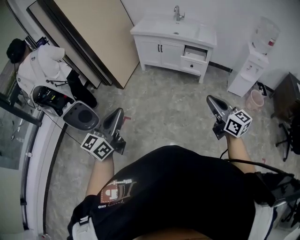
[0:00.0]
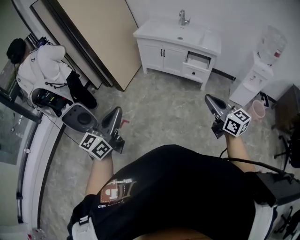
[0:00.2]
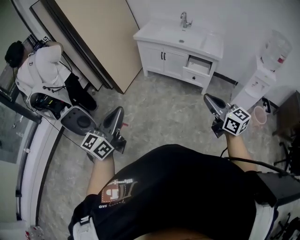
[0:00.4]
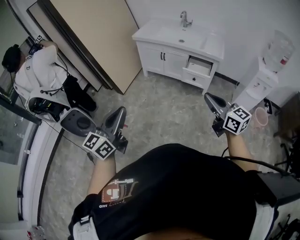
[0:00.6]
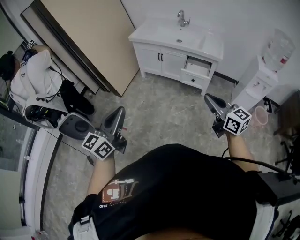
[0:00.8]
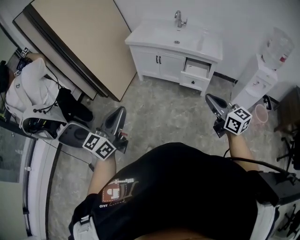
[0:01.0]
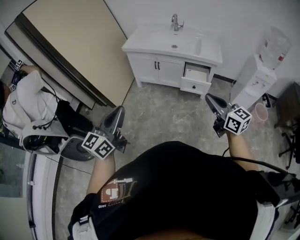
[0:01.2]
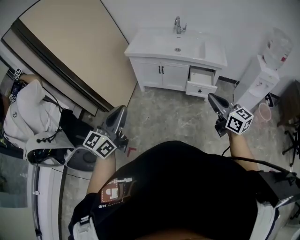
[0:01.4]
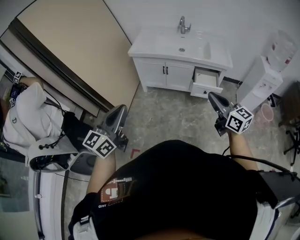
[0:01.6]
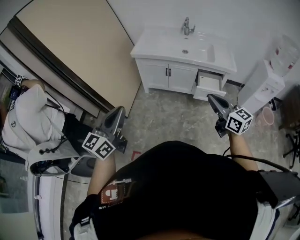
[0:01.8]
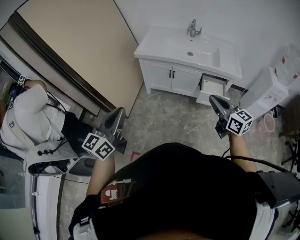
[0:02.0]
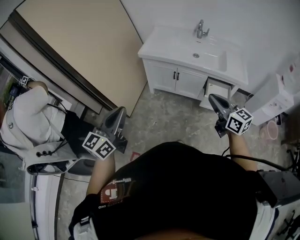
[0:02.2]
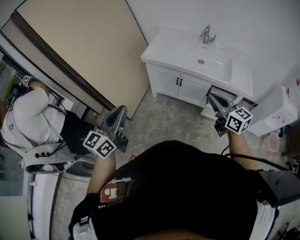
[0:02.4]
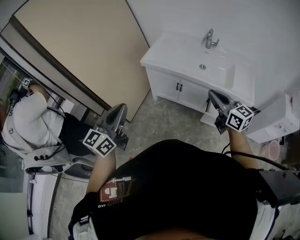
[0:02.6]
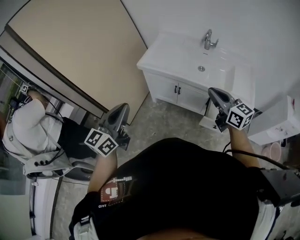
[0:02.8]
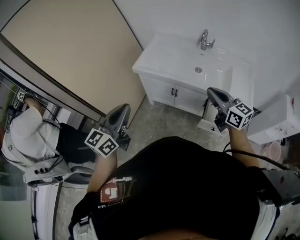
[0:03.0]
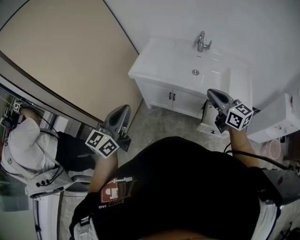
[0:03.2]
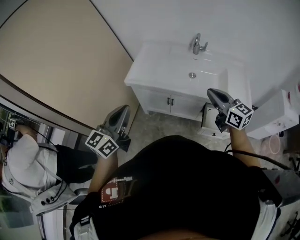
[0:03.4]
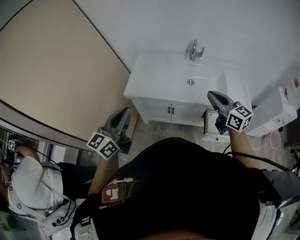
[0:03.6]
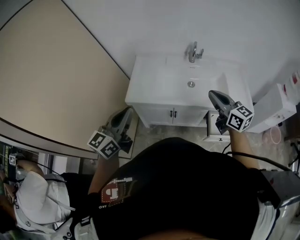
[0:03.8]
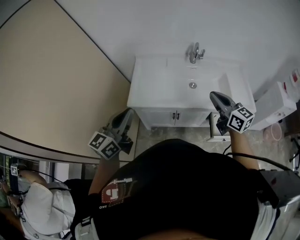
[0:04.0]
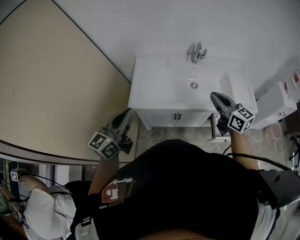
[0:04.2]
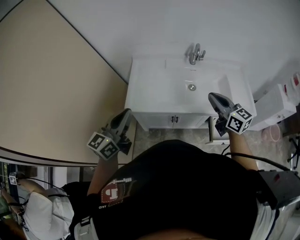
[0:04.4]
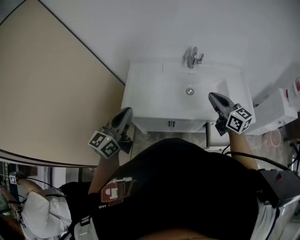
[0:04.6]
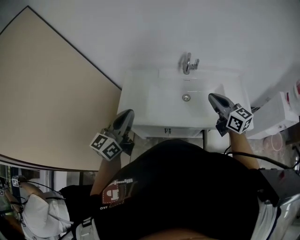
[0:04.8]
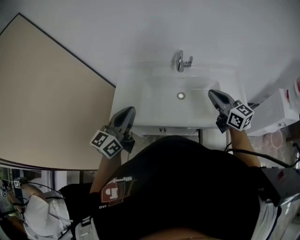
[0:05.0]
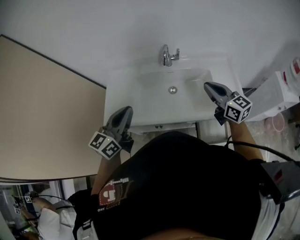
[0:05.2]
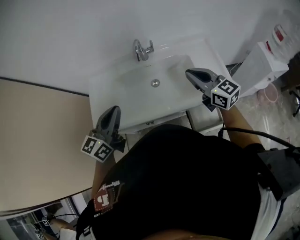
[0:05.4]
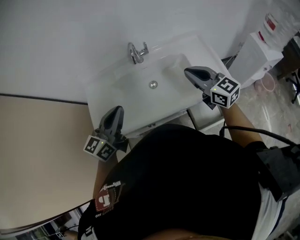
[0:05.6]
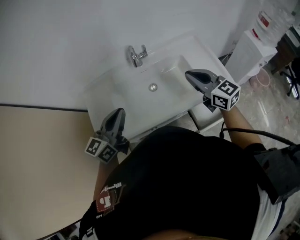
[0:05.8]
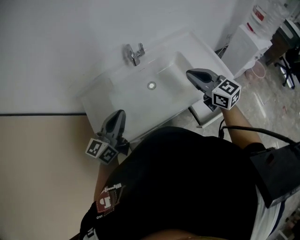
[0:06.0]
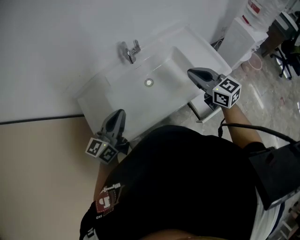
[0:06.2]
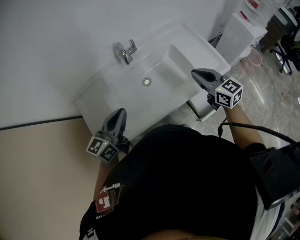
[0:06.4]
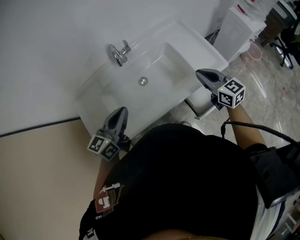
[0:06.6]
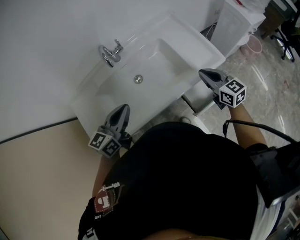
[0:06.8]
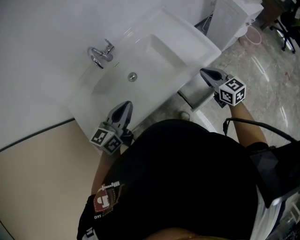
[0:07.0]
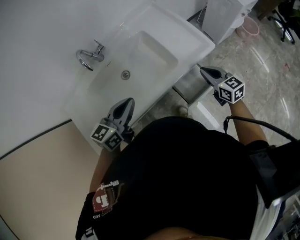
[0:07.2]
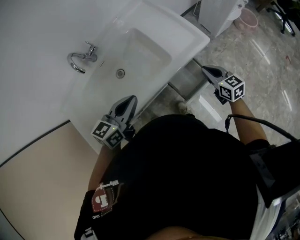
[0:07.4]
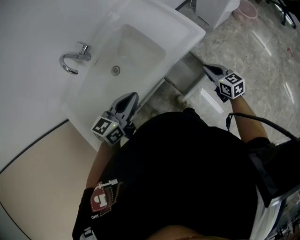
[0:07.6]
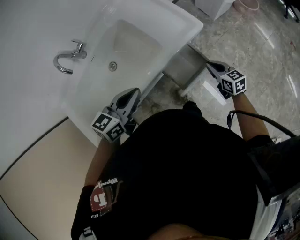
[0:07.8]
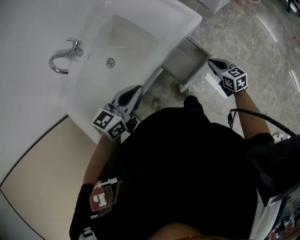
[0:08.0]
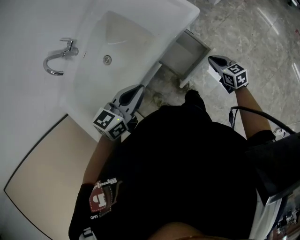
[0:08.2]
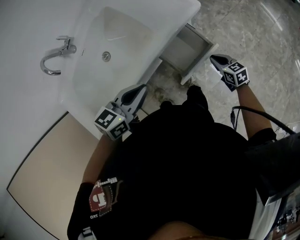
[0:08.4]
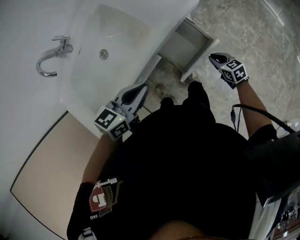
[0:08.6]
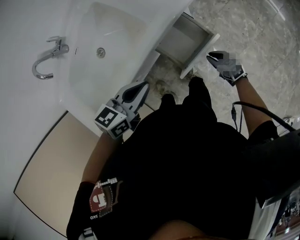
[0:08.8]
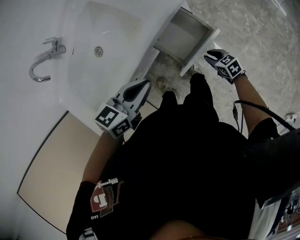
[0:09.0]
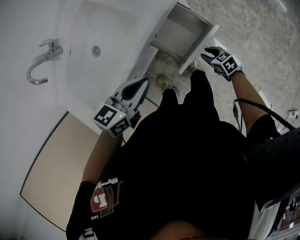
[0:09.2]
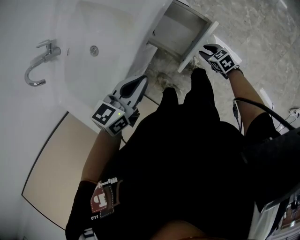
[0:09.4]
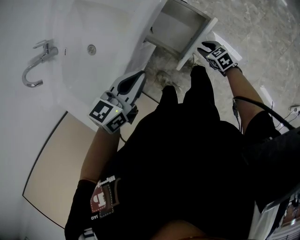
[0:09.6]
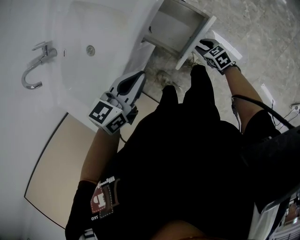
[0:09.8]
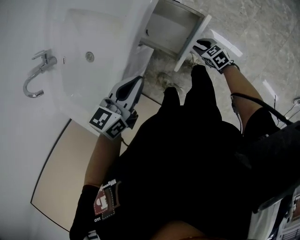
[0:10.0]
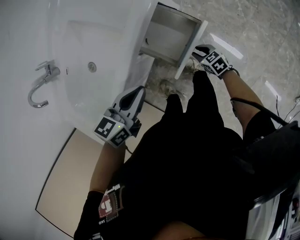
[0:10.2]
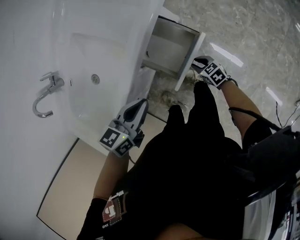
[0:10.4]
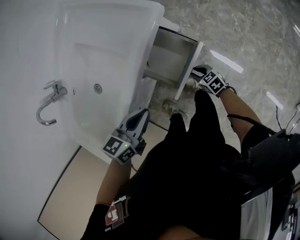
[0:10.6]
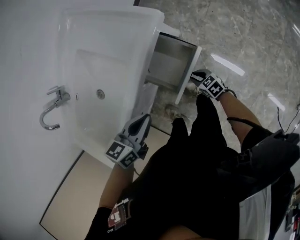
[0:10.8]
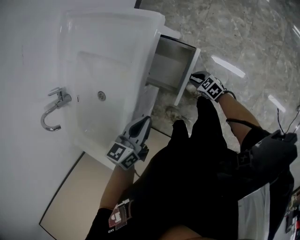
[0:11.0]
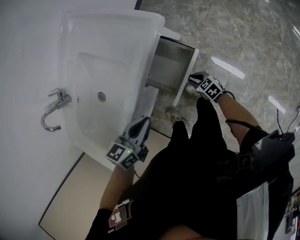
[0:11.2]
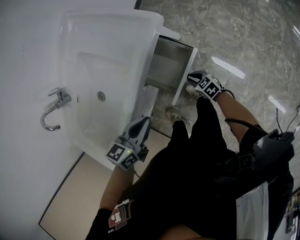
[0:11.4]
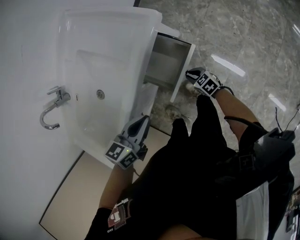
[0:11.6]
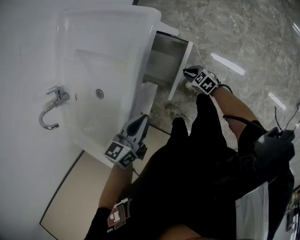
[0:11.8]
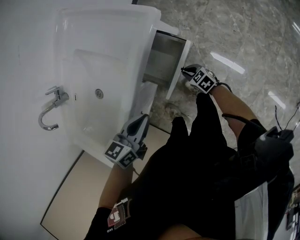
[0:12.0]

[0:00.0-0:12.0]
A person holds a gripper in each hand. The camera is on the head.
0.0 to 1.6 s: The two grippers travel together, forward, about 40 cm.
1.6 to 3.0 s: Both grippers travel together forward, about 35 cm.
3.0 to 4.4 s: The right gripper travels forward by approximately 20 cm, and rotates approximately 20 degrees, while the left gripper moves forward, some 30 cm, and turns by approximately 20 degrees.
4.4 to 6.0 s: Both grippers move to the right and forward, some 25 cm. The left gripper turns by some 30 degrees.
6.0 to 7.6 s: Both grippers travel together to the right and downward, approximately 35 cm. The left gripper turns by about 30 degrees, while the right gripper turns by roughly 30 degrees.
7.6 to 9.0 s: The left gripper shifts some 10 cm downward, and swivels some 20 degrees. The right gripper heads downward, covering some 25 cm, and changes its angle by approximately 20 degrees.
9.0 to 10.4 s: The right gripper ends up about 5 cm from where it was.
10.4 to 12.0 s: The right gripper changes place by about 5 cm.

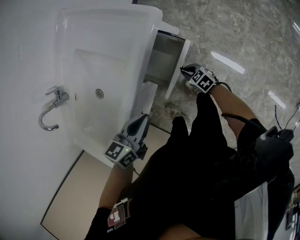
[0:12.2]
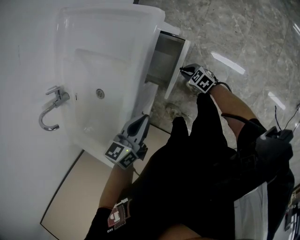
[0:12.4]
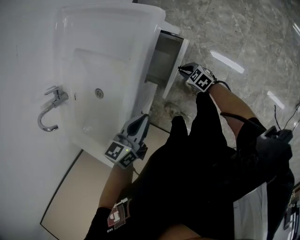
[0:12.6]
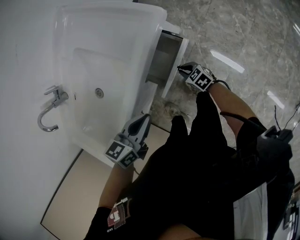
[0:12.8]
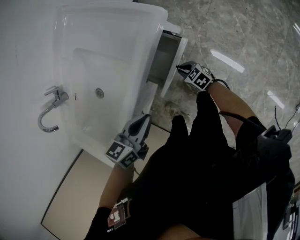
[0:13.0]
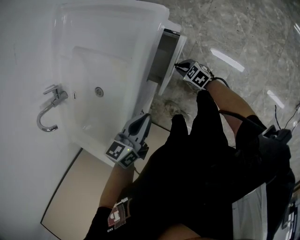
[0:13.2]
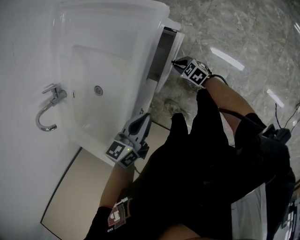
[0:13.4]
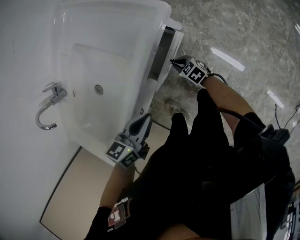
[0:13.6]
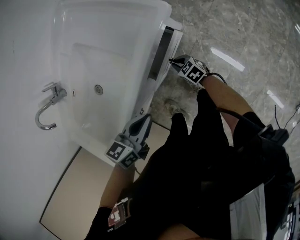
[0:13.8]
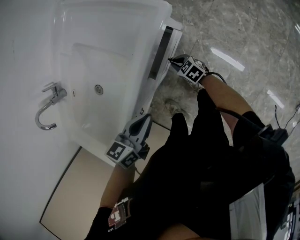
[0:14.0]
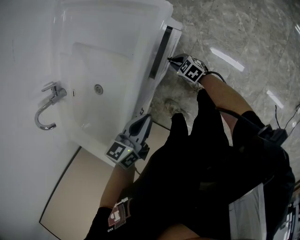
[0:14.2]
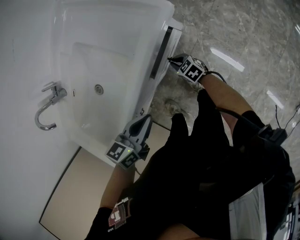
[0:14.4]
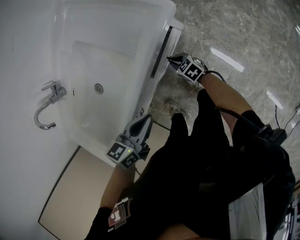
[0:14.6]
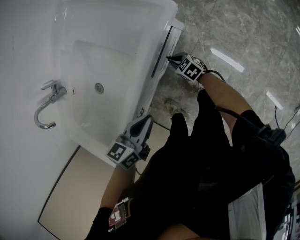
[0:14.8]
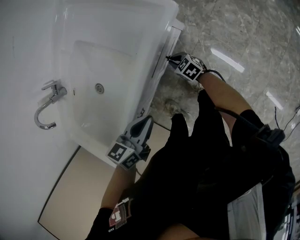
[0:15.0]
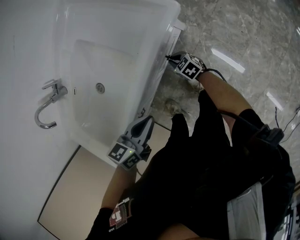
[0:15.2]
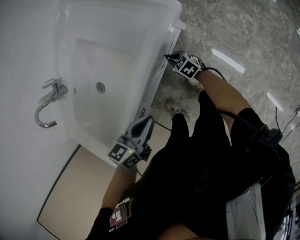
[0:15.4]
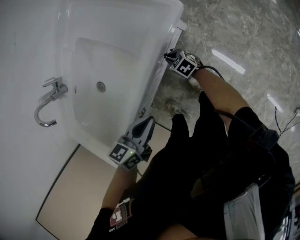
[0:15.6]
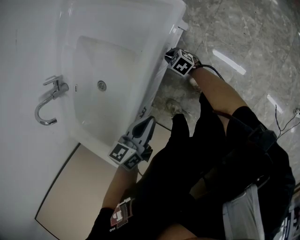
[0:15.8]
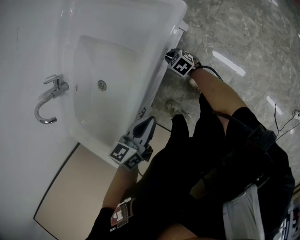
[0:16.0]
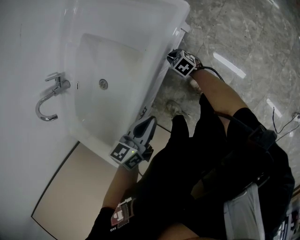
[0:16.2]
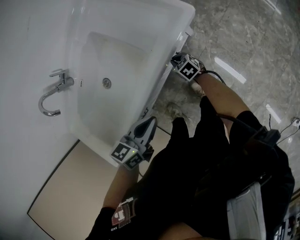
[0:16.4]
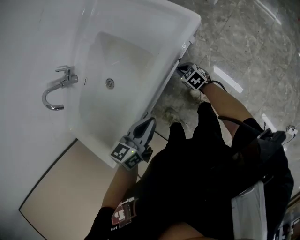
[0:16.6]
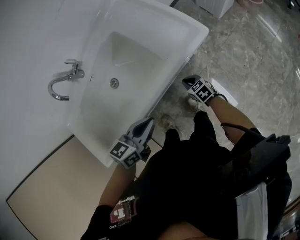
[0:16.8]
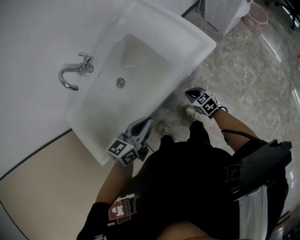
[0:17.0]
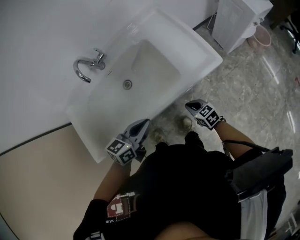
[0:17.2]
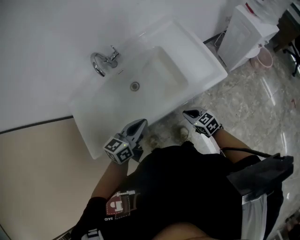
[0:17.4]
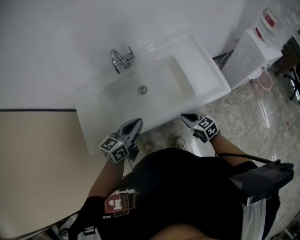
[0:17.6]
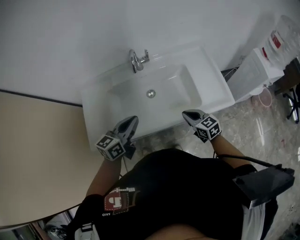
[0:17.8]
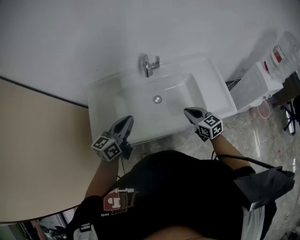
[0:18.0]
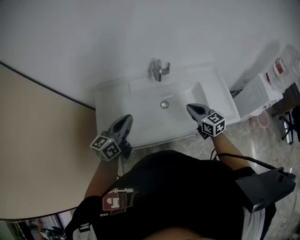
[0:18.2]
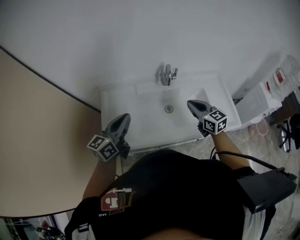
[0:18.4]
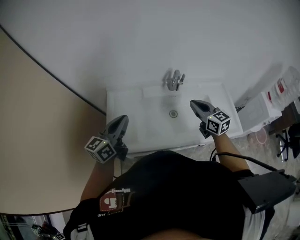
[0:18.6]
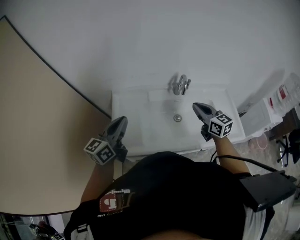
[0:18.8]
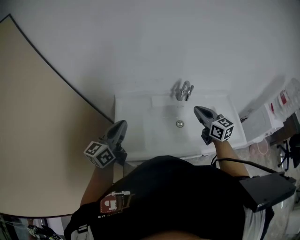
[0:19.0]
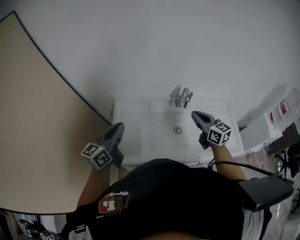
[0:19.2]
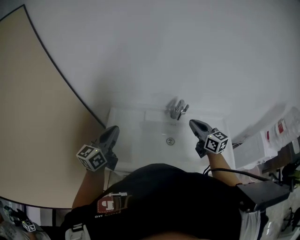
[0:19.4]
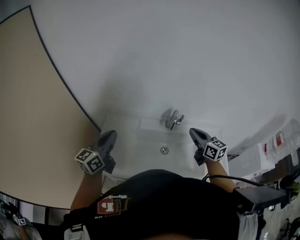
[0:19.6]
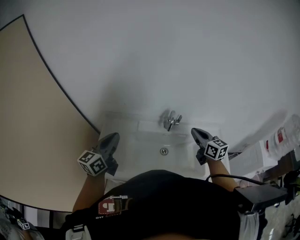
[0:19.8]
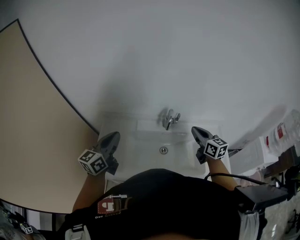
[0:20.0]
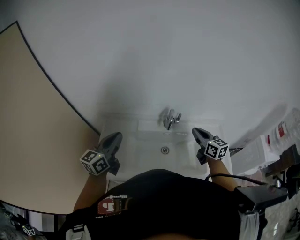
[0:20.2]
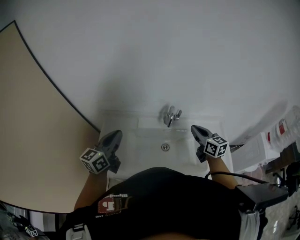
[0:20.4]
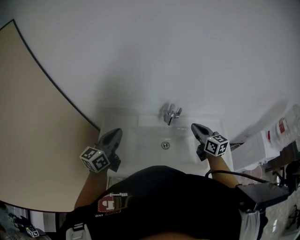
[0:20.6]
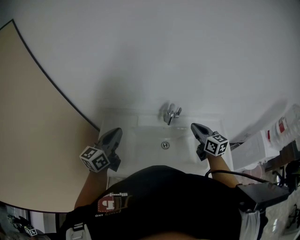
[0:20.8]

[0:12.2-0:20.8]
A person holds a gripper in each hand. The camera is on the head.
12.2 to 13.6 s: The right gripper moves approximately 5 cm.
13.6 to 15.0 s: The grippers move only a little.
15.0 to 16.6 s: The left gripper changes place by some 5 cm.
16.6 to 18.0 s: The left gripper moves roughly 40 cm, and points its fingers roughly 30 degrees further upward, while the right gripper is displaced upward by approximately 40 cm, and turns by roughly 30 degrees.
18.0 to 19.4 s: The left gripper shifts some 25 cm to the left and upward, and changes its angle by about 20 degrees; the right gripper travels upward, forward and to the left by some 25 cm.
19.4 to 20.8 s: The grippers both shift to the right by approximately 10 cm.

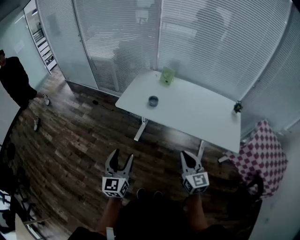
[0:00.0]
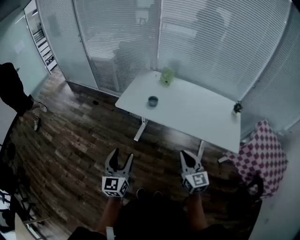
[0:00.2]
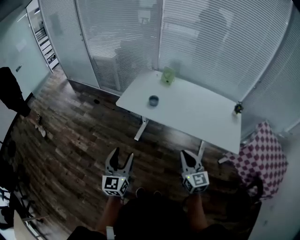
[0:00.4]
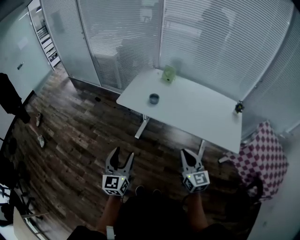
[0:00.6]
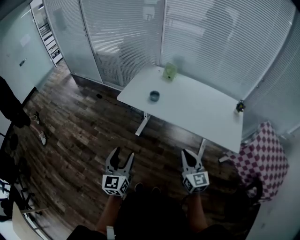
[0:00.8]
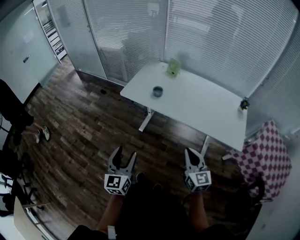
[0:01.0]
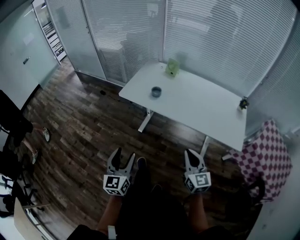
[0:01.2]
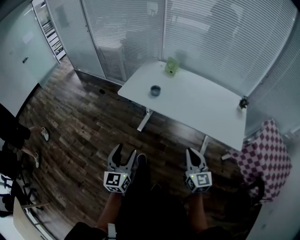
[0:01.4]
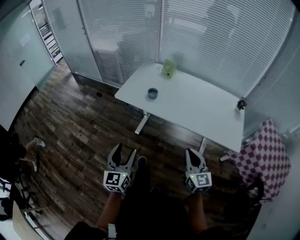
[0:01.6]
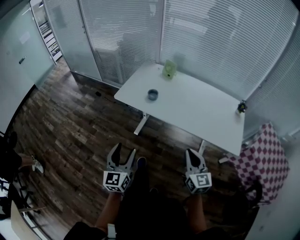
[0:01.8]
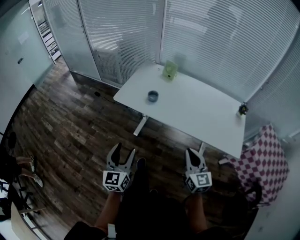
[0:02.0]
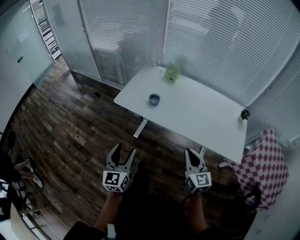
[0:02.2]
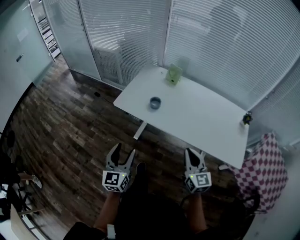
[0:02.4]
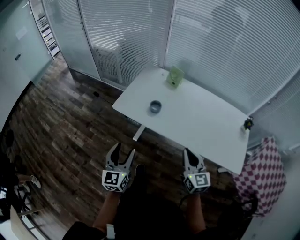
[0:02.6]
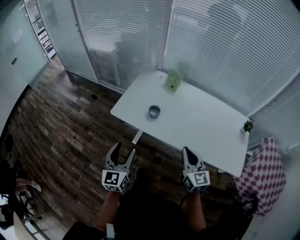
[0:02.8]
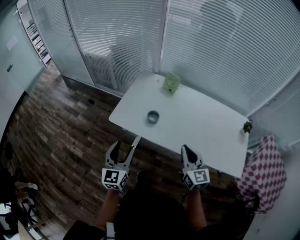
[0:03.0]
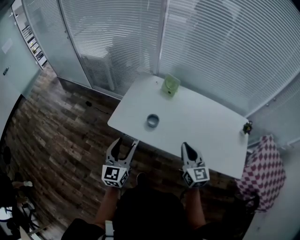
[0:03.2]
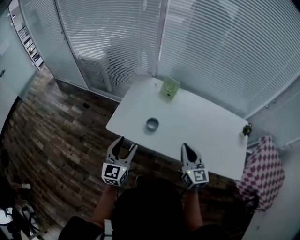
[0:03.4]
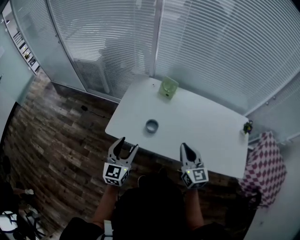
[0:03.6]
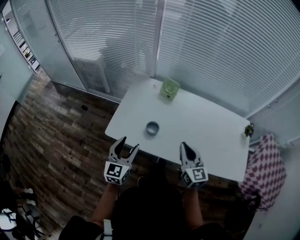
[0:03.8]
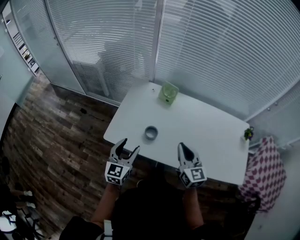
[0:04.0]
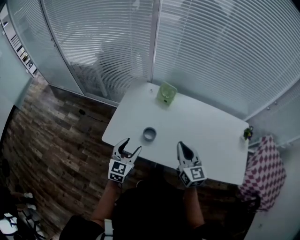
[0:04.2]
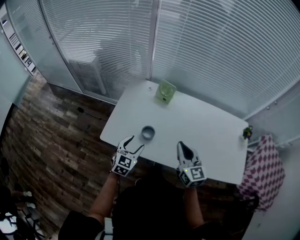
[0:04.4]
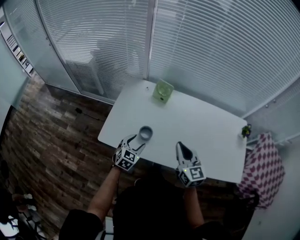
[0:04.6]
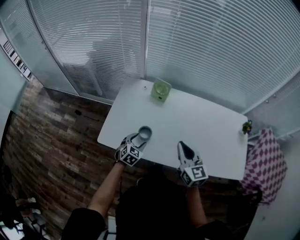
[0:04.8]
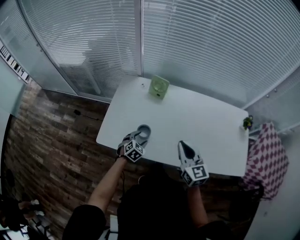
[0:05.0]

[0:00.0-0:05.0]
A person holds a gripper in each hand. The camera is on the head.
0.0 to 1.6 s: Both grippers travel together to the right, about 5 cm.
1.6 to 3.4 s: Both grippers move forward, about 30 cm.
3.4 to 5.0 s: The right gripper heads forward, covering approximately 5 cm. Meanwhile the left gripper heads downward and forward, covering about 30 cm, and angles its fingers downward, by roughly 40 degrees.
